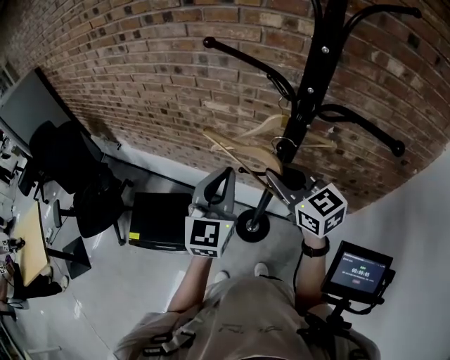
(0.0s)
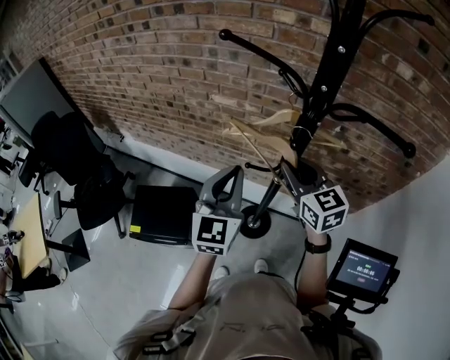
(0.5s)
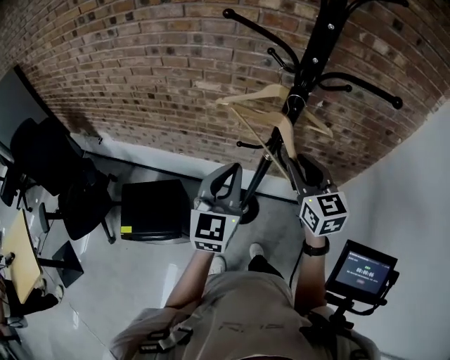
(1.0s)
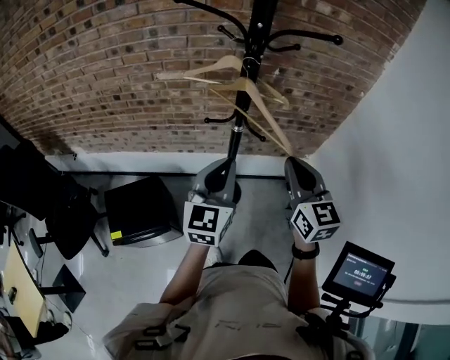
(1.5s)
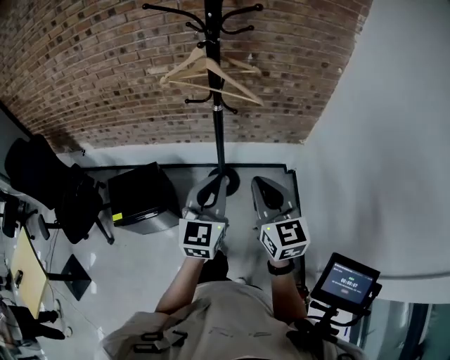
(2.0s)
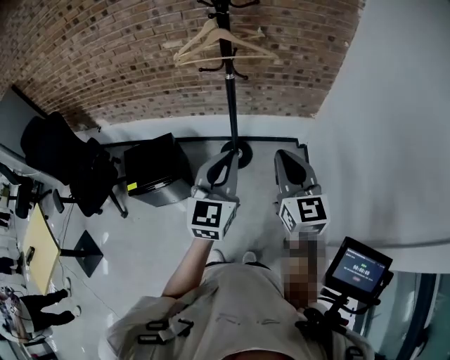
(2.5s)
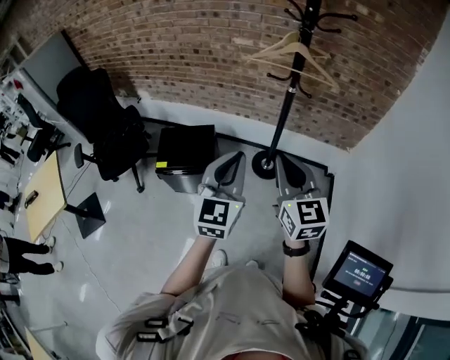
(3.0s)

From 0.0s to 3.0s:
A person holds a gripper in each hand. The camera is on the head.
From 0.0s to 1.5s: The left gripper moves some 15 cm, and turns by approximately 20 degrees. The right gripper changes place by about 20 cm, and changes its angle by approximately 40 degrees.
From 1.5s to 3.0s: Both grippers travel together backward, about 30 cm.

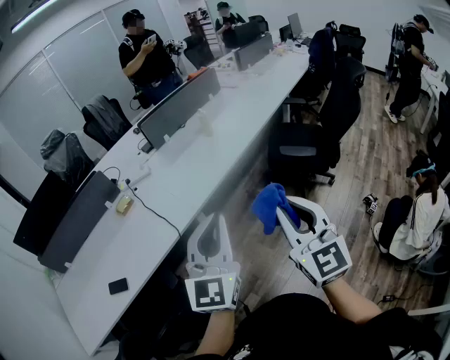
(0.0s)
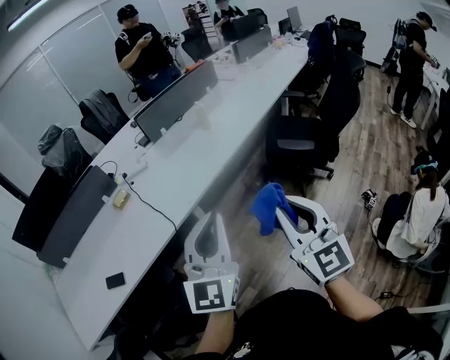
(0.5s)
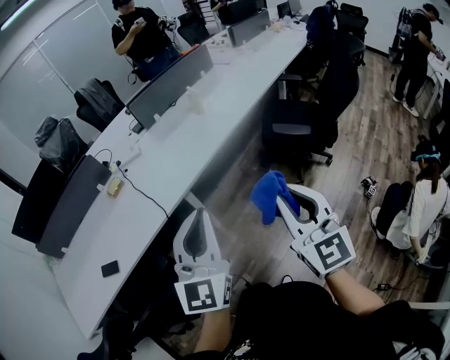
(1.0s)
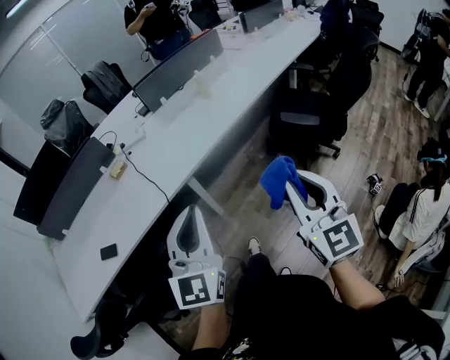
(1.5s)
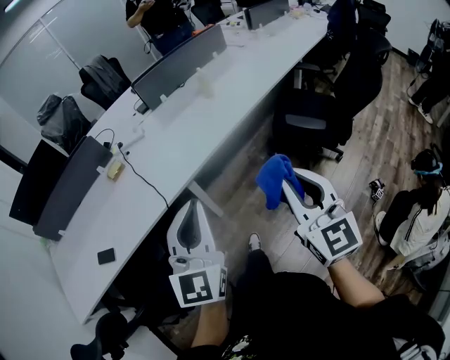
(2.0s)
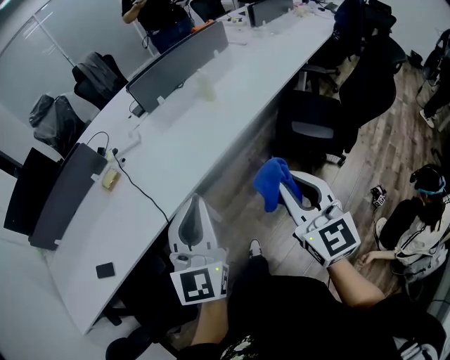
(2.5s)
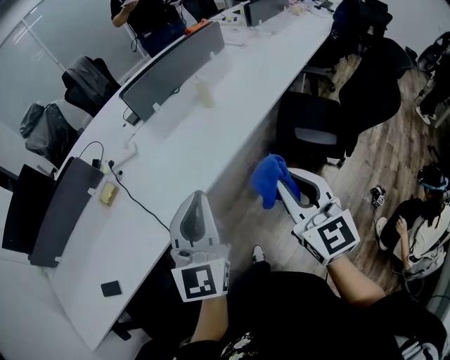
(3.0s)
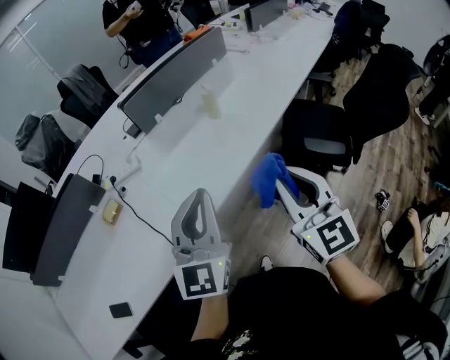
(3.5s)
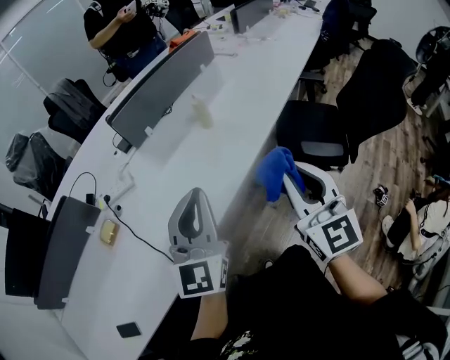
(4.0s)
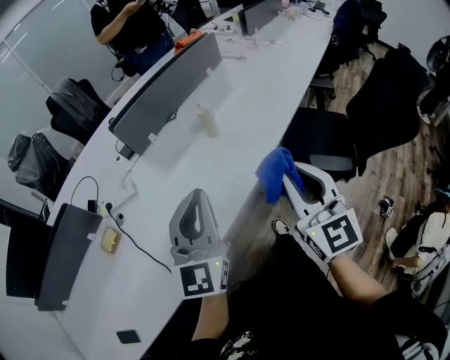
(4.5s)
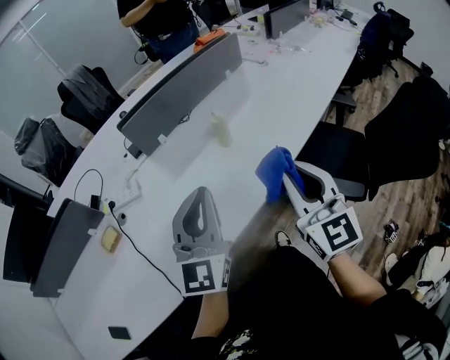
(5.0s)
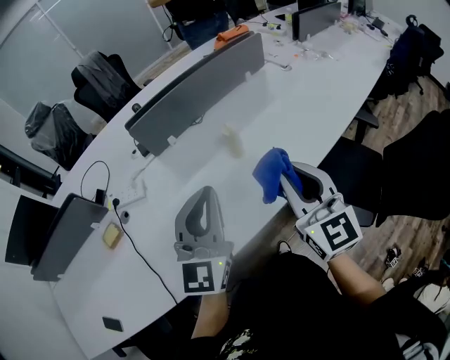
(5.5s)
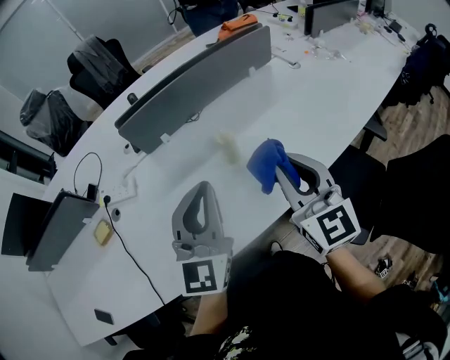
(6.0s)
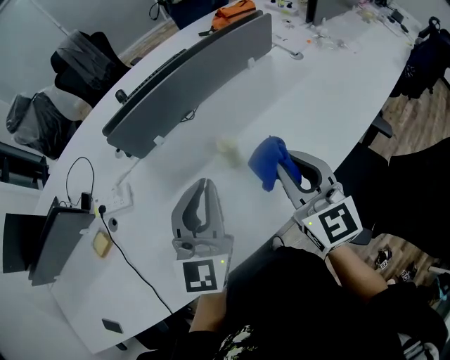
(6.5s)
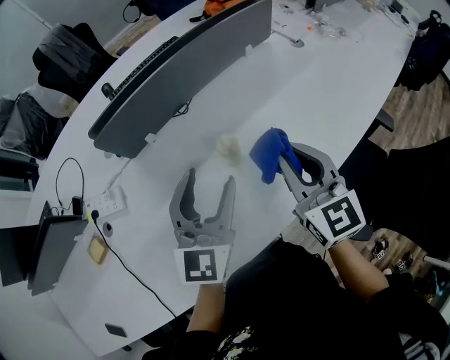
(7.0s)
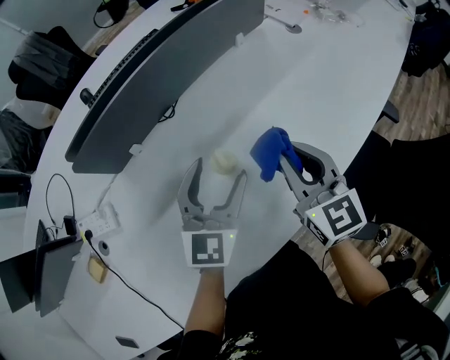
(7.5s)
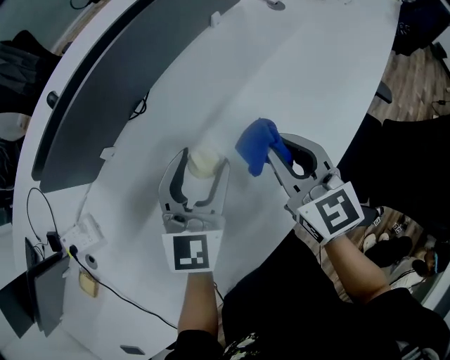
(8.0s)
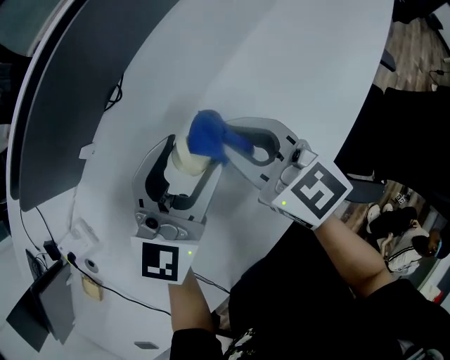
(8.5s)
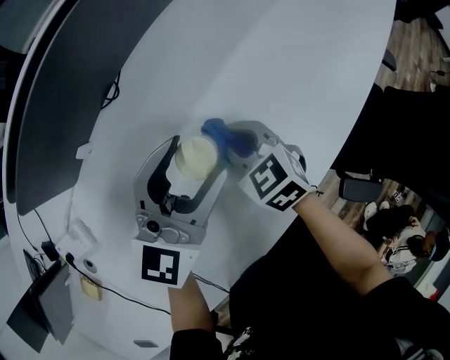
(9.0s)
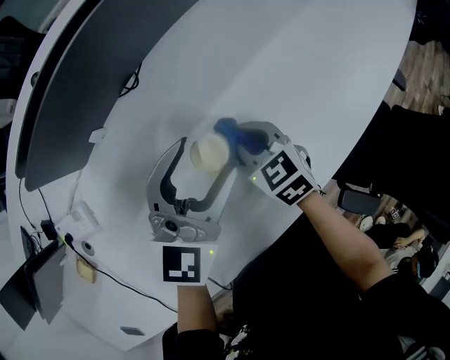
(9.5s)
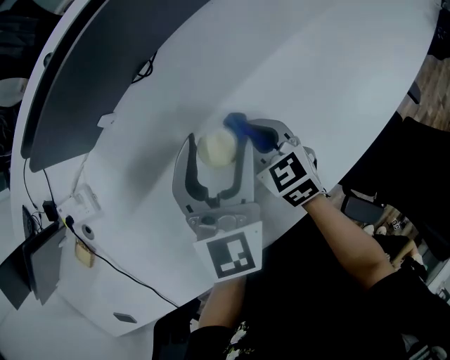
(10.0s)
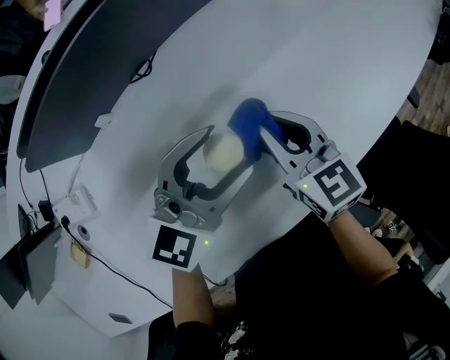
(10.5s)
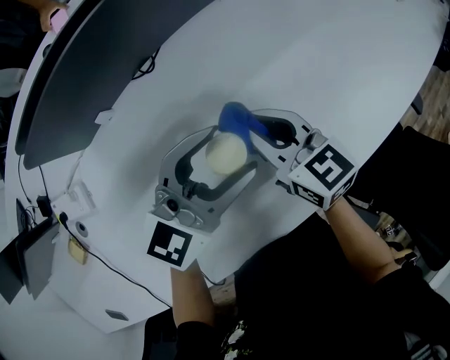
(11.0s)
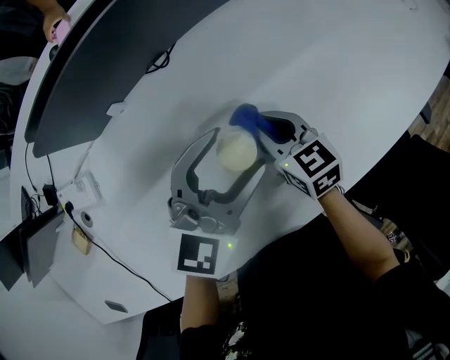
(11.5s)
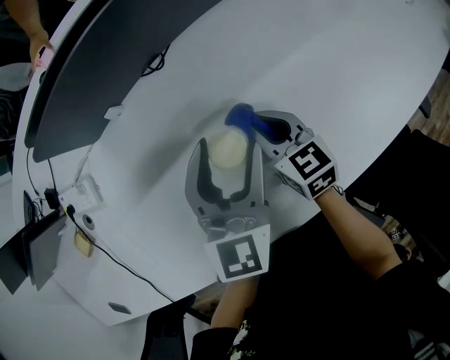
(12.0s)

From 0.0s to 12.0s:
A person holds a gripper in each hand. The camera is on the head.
From 0.0s to 2.0s: The right gripper heads forward, covering some 5 cm.
From 2.0s to 4.0s: The two grippers go roughly 30 cm forward.
From 4.0s to 6.0s: The two grippers go approximately 30 cm forward. The right gripper changes its angle by about 20 degrees.
From 6.0s to 8.0s: The left gripper heads forward and downward, covering roughly 25 cm, turns by about 30 degrees, and opens its fingers. The right gripper goes roughly 20 cm downward and forward, and swivels roughly 20 degrees.
From 8.0s to 10.0s: The right gripper is displaced downward and to the left by roughly 15 cm, and swivels some 30 degrees.
From 10.0s to 12.0s: The right gripper reaches roughly 10 cm upward, then returns.

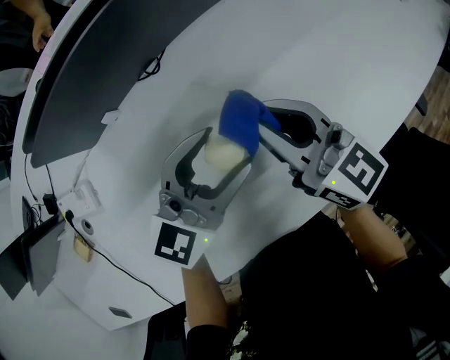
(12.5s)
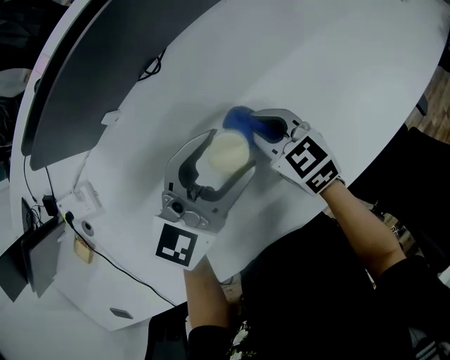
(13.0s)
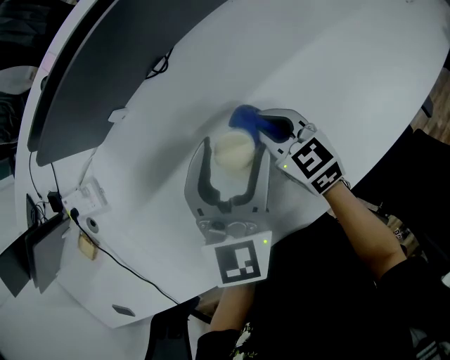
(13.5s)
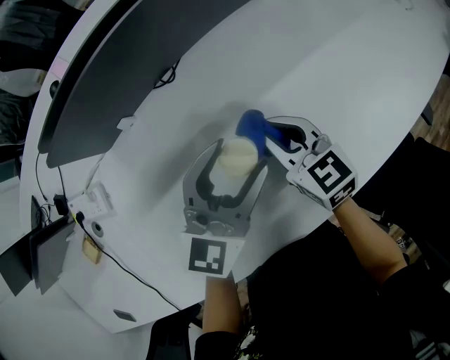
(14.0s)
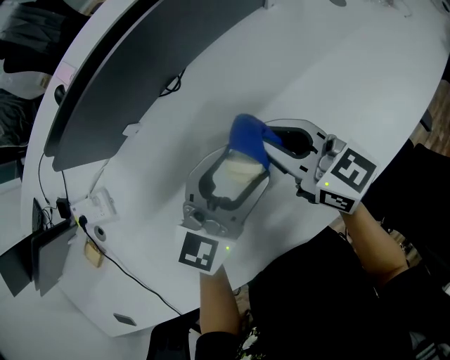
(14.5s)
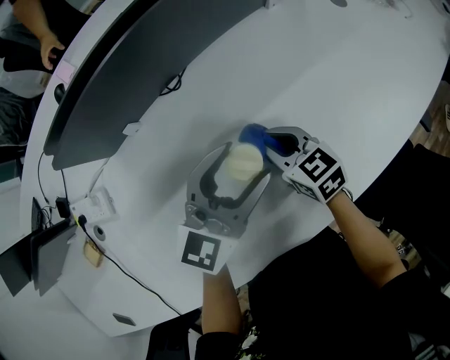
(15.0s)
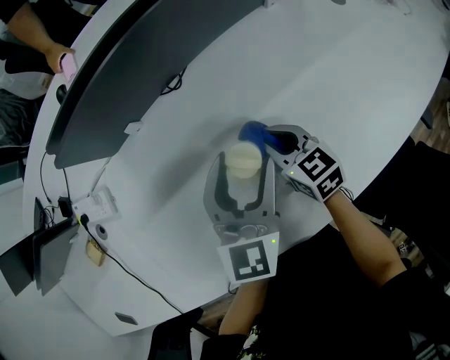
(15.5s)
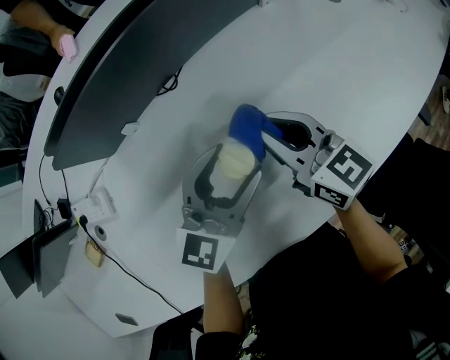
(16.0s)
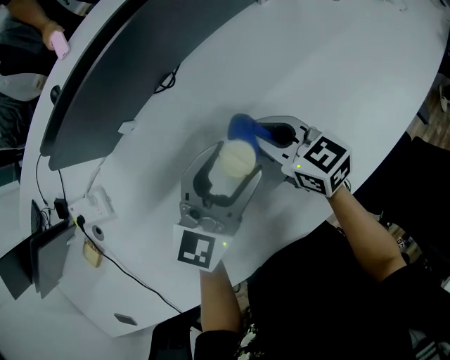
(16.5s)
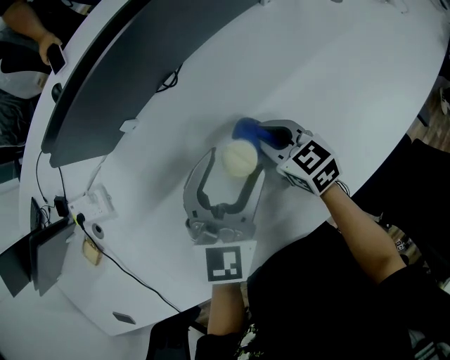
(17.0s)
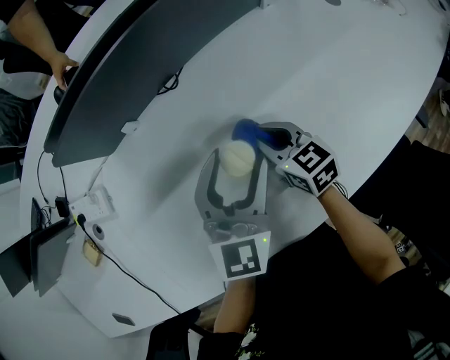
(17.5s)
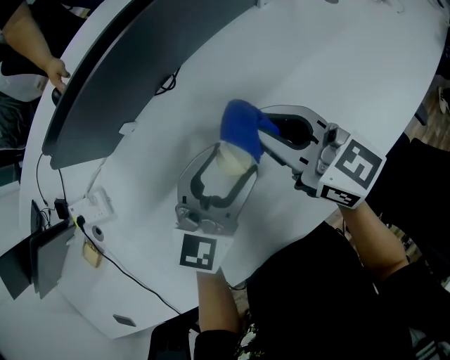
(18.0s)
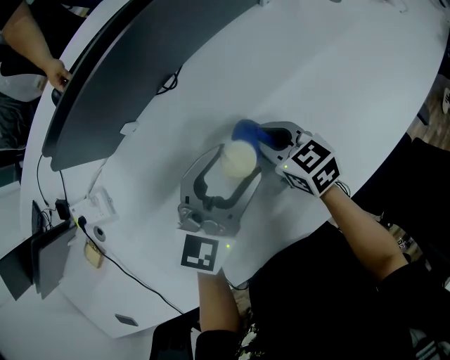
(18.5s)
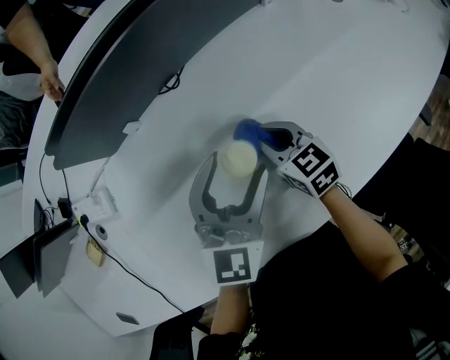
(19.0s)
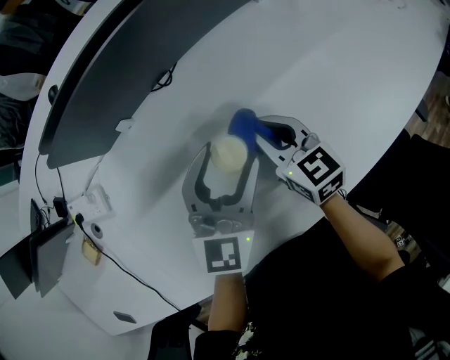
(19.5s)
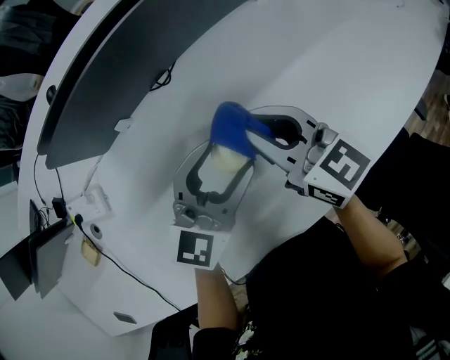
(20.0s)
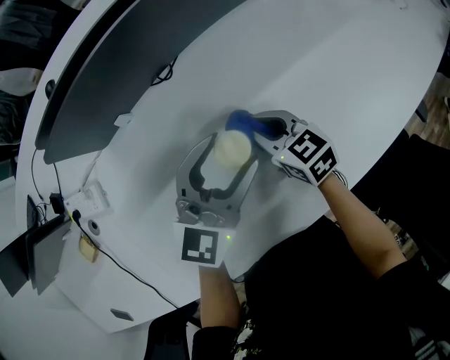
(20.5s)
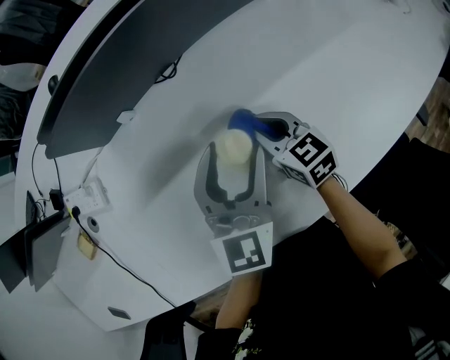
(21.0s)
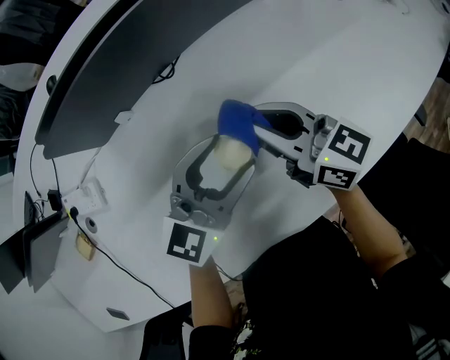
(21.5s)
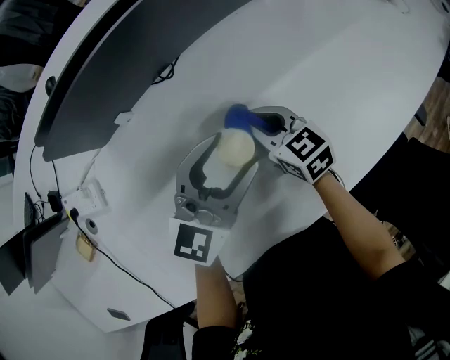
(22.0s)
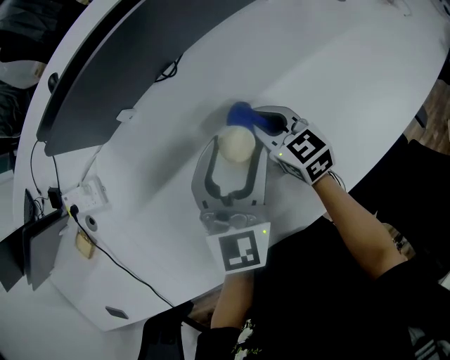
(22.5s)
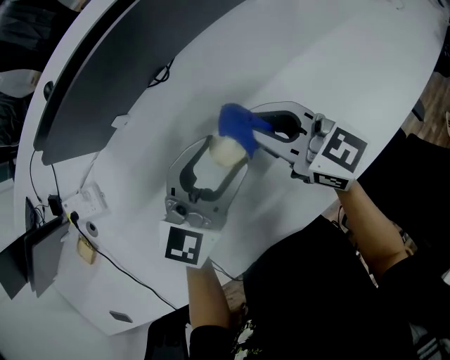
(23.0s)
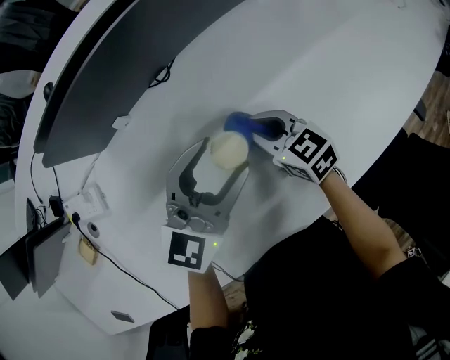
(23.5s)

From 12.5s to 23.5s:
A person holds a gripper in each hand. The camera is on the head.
From 12.5s to 14.5s: The right gripper reaches some 15 cm downward, then returns.
From 14.5s to 16.0s: The right gripper moves approximately 10 cm downward and comes back.
From 16.0s to 18.0s: The right gripper travels downward and back again, some 10 cm each way.
From 18.0s to 20.0s: The right gripper moves roughly 15 cm downward and comes back.
From 20.0s to 21.5s: The right gripper moves about 15 cm downward and comes back.
From 21.5s to 23.5s: The right gripper goes up and down, roughly 15 cm each way, reversing 2 times, and rotates some 30 degrees.

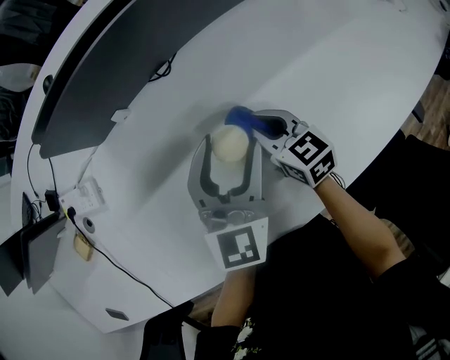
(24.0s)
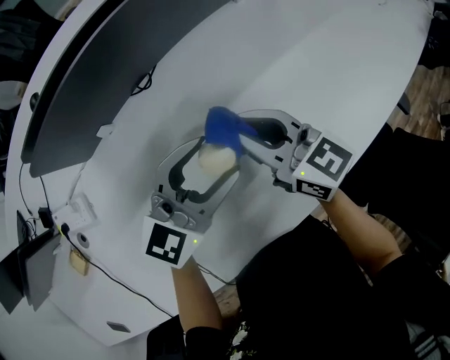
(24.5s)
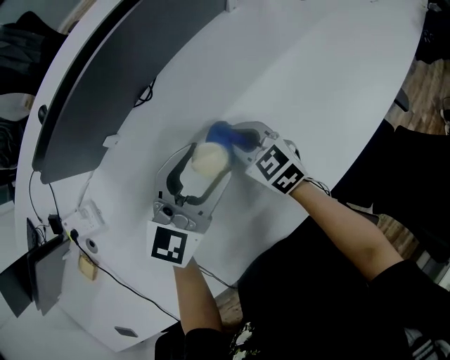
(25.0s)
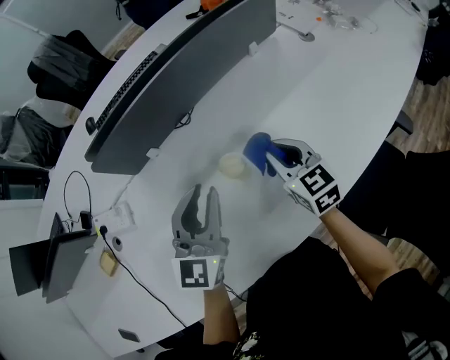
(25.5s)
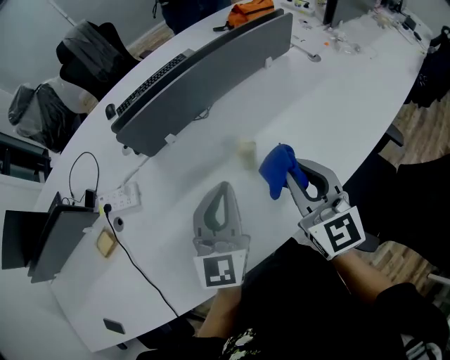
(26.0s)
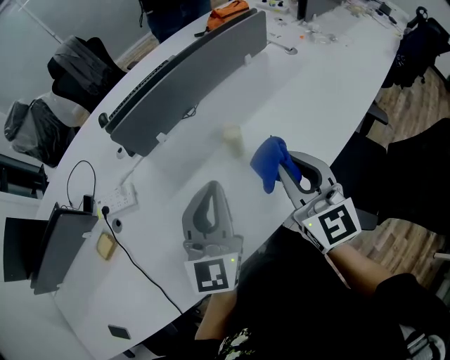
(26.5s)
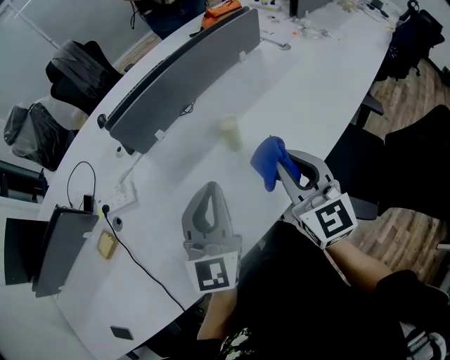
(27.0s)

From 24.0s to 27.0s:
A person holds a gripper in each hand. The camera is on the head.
From 24.0s to 25.5s: The right gripper goes up and down, about 10 cm each way, reversing 2 times. The left gripper goes some 10 cm upward and to the left, and closes.
From 25.5s to 27.0s: The two grippers go some 20 cm backward and upward. The left gripper closes its fingers; the right gripper turns by some 20 degrees.
